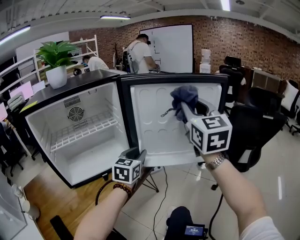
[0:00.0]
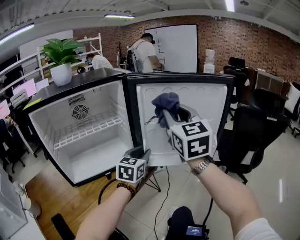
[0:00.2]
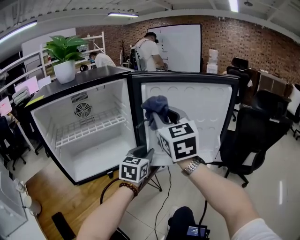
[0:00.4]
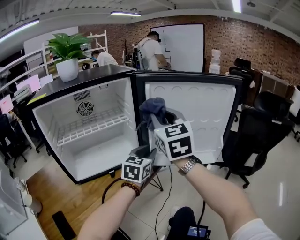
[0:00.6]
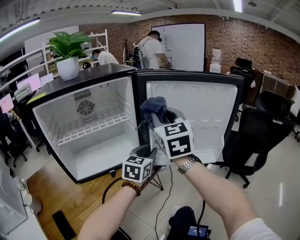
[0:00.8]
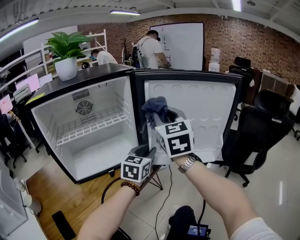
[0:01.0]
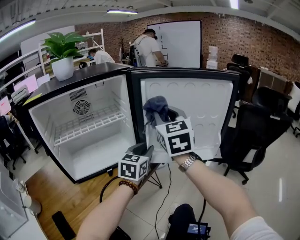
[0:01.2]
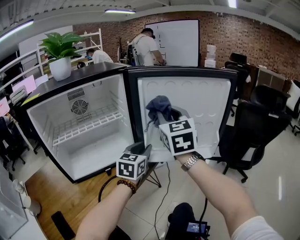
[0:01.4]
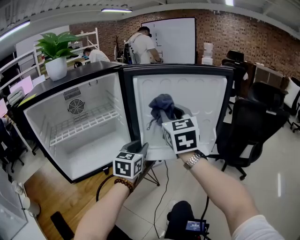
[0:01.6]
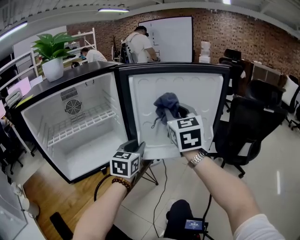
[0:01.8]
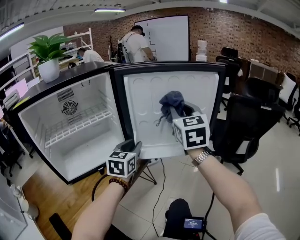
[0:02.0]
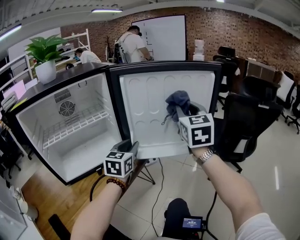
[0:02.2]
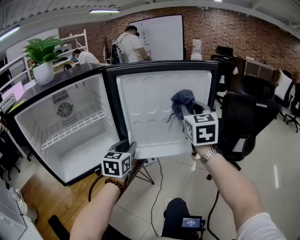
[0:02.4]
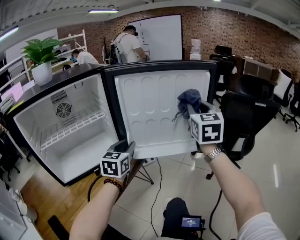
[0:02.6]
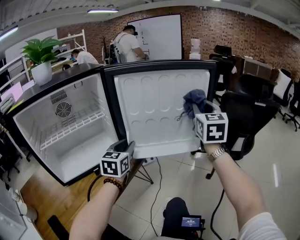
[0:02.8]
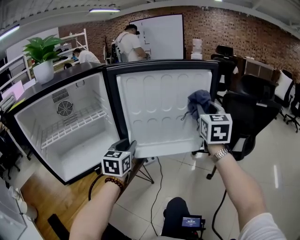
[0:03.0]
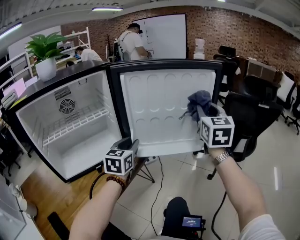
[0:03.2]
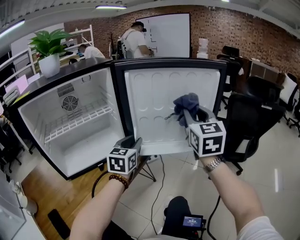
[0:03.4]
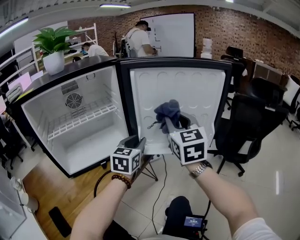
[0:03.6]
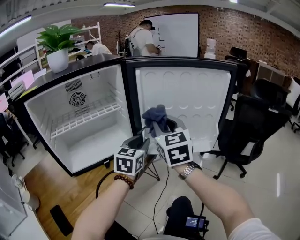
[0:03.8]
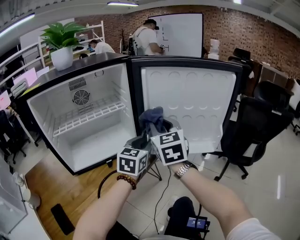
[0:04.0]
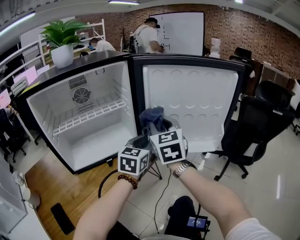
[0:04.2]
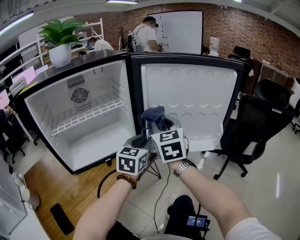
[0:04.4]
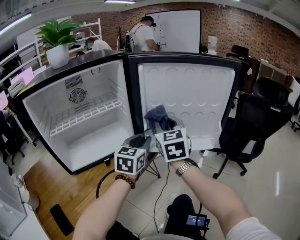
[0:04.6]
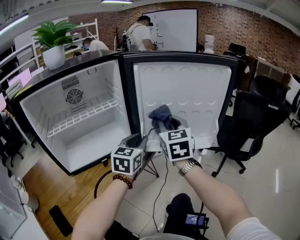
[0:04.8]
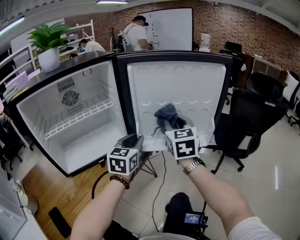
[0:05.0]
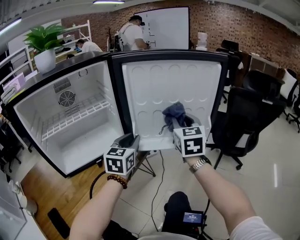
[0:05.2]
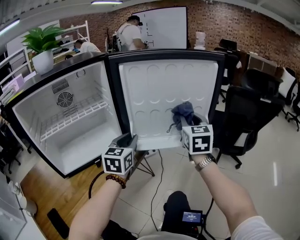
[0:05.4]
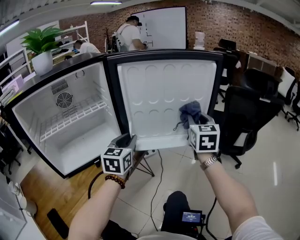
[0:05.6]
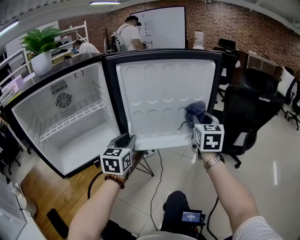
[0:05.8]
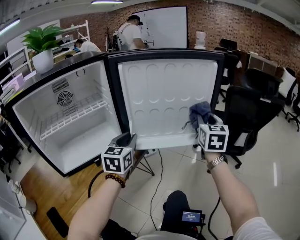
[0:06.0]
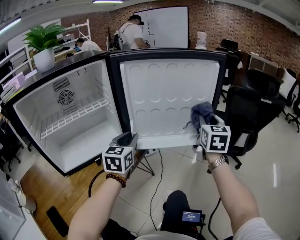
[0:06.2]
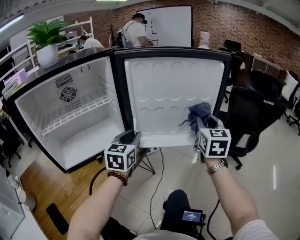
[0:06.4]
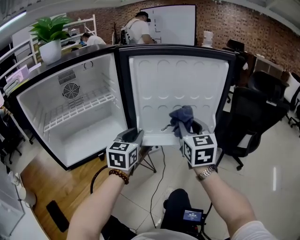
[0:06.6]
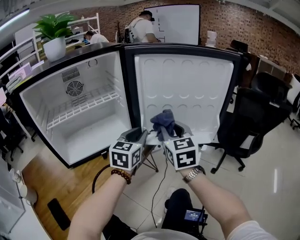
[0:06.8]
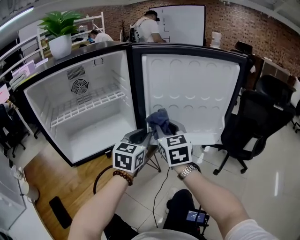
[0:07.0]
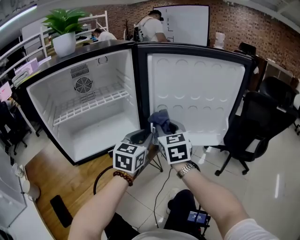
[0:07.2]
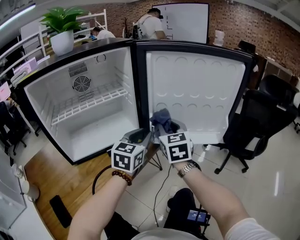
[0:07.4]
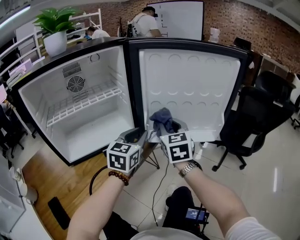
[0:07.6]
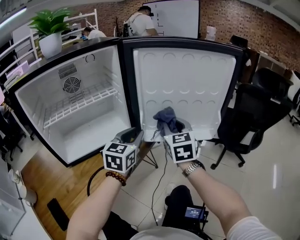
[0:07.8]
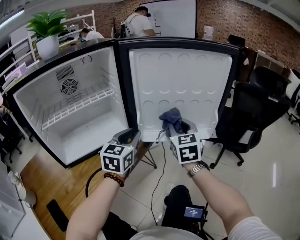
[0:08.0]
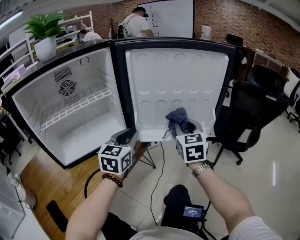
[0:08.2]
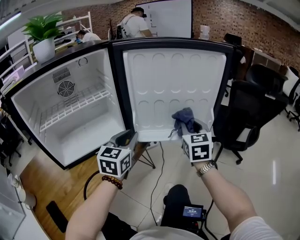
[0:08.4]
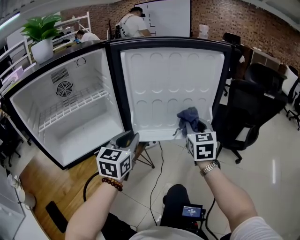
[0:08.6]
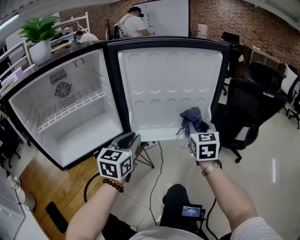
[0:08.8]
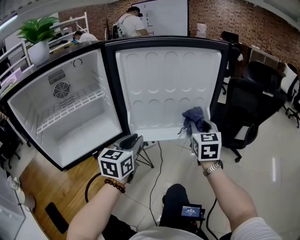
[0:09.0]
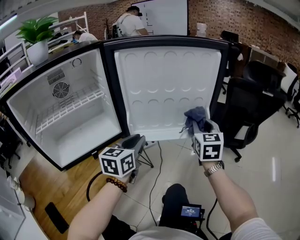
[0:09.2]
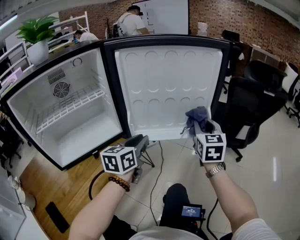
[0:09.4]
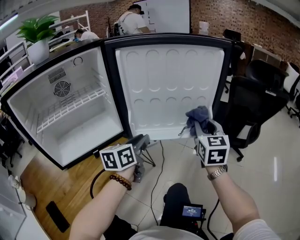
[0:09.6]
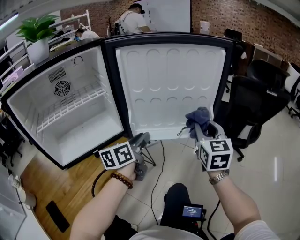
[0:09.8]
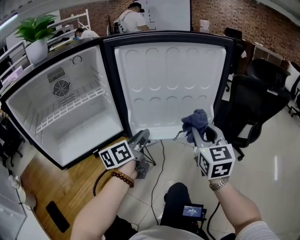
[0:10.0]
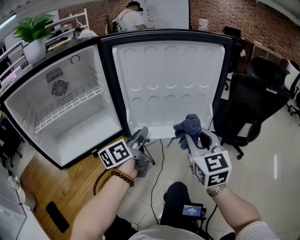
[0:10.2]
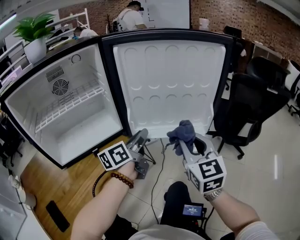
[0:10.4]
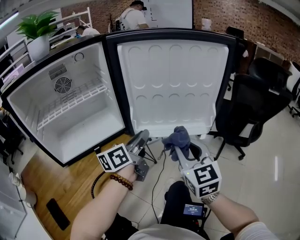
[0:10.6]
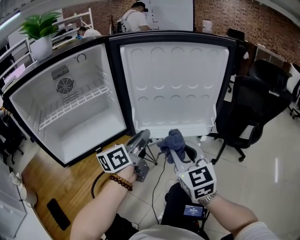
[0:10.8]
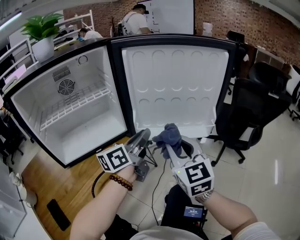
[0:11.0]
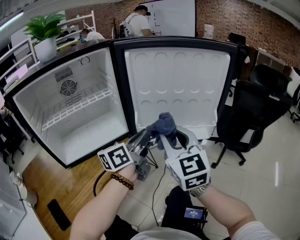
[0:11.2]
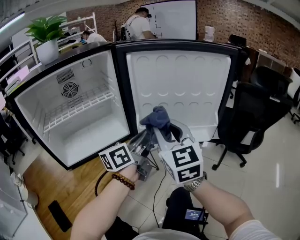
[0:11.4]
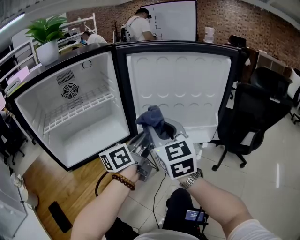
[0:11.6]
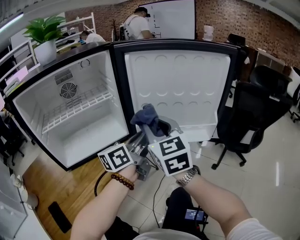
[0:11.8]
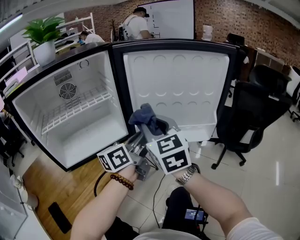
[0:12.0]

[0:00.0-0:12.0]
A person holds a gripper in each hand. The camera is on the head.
0:00.0 to 0:01.6: The right gripper shifts roughly 10 cm to the left and downward.
0:01.6 to 0:03.0: The right gripper heads to the right, covering about 20 cm.
0:03.0 to 0:04.4: The right gripper goes approximately 25 cm to the left, and changes its angle by about 20 degrees.
0:04.4 to 0:06.0: The right gripper heads to the right, covering about 25 cm, and rotates approximately 30 degrees.
0:06.0 to 0:07.6: The right gripper goes some 25 cm to the left, and changes its angle by roughly 20 degrees.
0:07.6 to 0:09.0: The right gripper goes some 20 cm to the right, while the left gripper moves about 5 cm.
0:09.0 to 0:10.4: The right gripper shifts roughly 10 cm backward and to the left; the left gripper turns by about 40 degrees.
0:10.4 to 0:12.0: The right gripper goes approximately 15 cm to the left and upward, while the left gripper shifts roughly 5 cm upward.

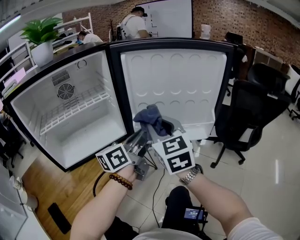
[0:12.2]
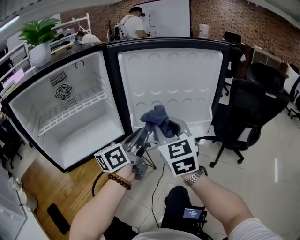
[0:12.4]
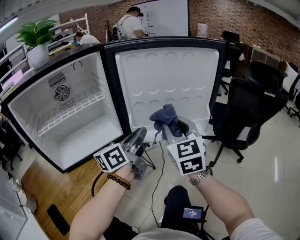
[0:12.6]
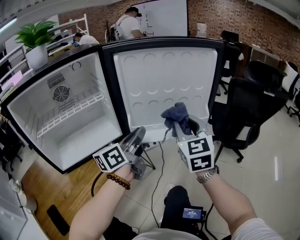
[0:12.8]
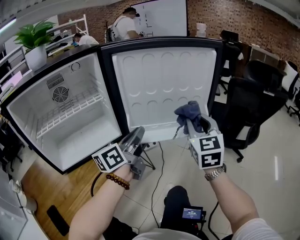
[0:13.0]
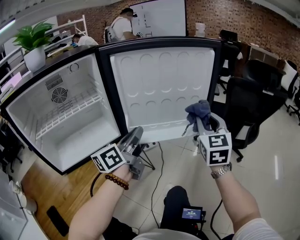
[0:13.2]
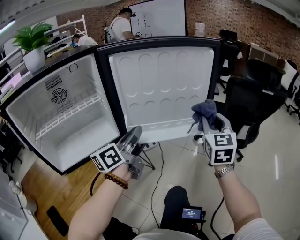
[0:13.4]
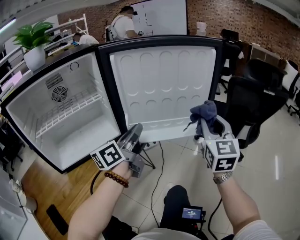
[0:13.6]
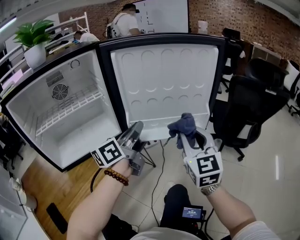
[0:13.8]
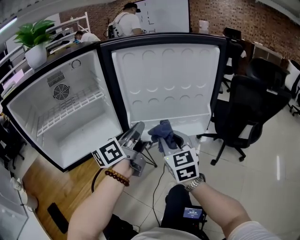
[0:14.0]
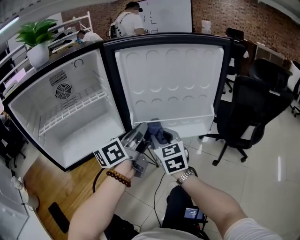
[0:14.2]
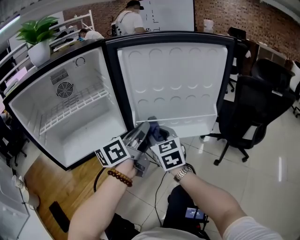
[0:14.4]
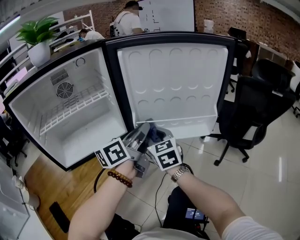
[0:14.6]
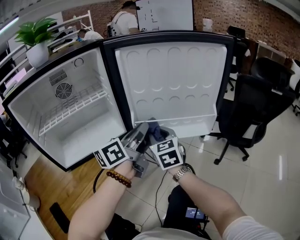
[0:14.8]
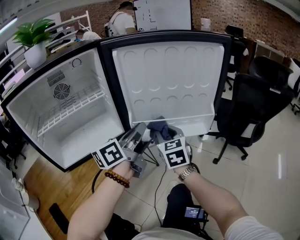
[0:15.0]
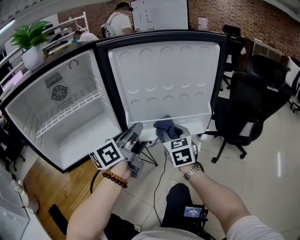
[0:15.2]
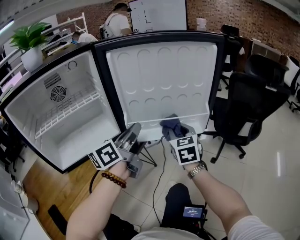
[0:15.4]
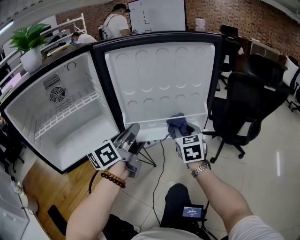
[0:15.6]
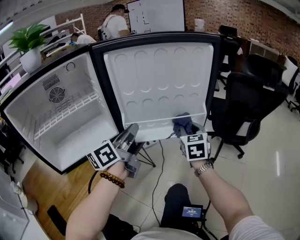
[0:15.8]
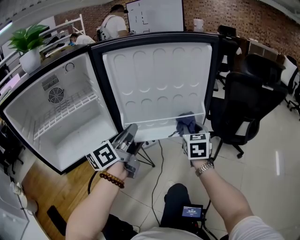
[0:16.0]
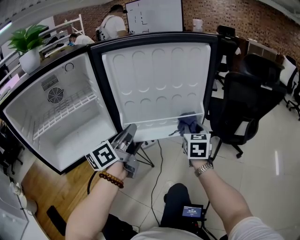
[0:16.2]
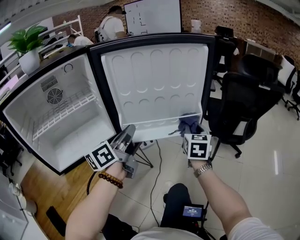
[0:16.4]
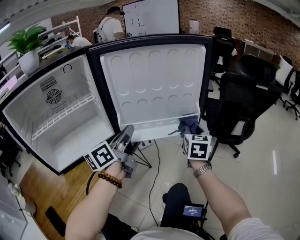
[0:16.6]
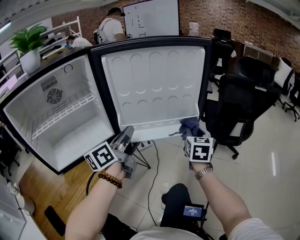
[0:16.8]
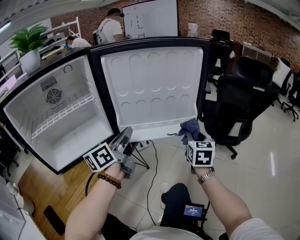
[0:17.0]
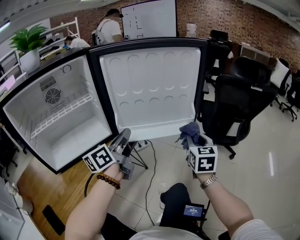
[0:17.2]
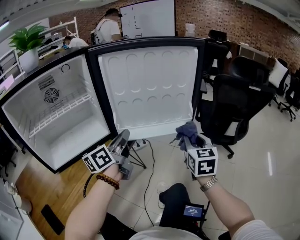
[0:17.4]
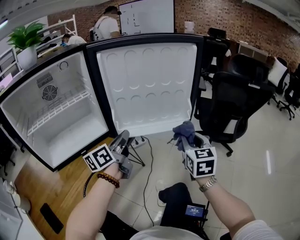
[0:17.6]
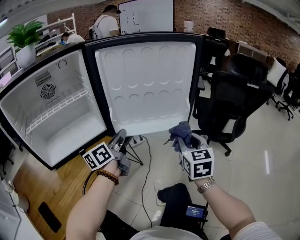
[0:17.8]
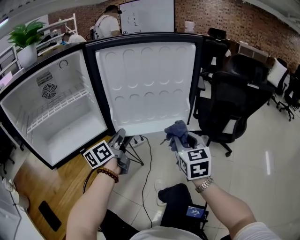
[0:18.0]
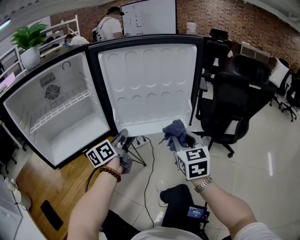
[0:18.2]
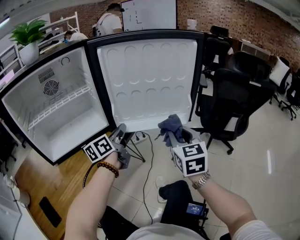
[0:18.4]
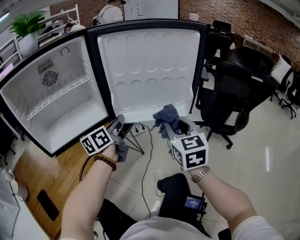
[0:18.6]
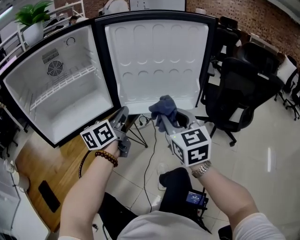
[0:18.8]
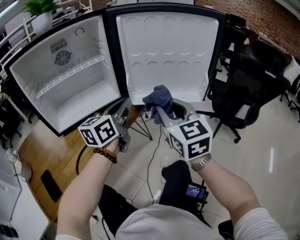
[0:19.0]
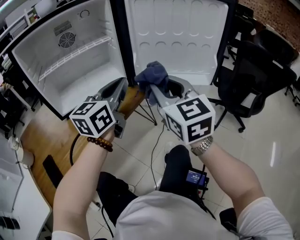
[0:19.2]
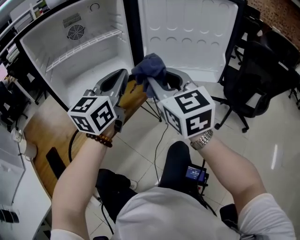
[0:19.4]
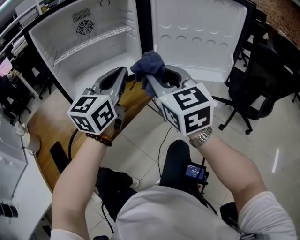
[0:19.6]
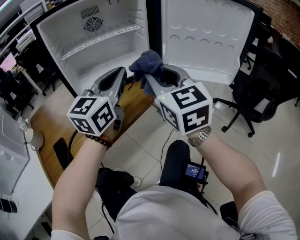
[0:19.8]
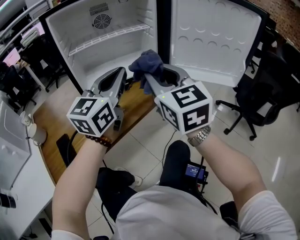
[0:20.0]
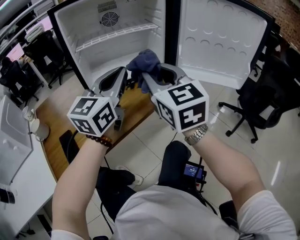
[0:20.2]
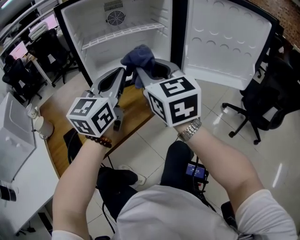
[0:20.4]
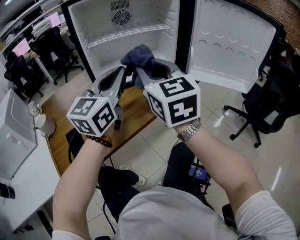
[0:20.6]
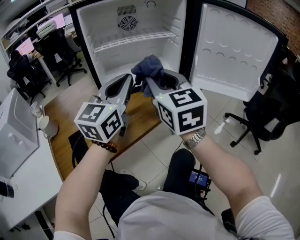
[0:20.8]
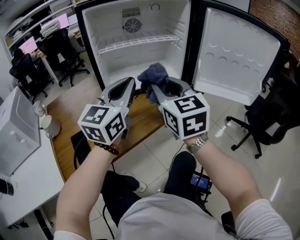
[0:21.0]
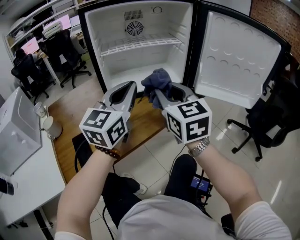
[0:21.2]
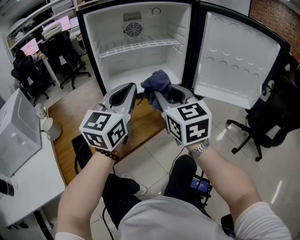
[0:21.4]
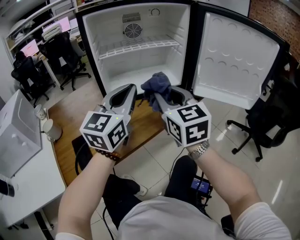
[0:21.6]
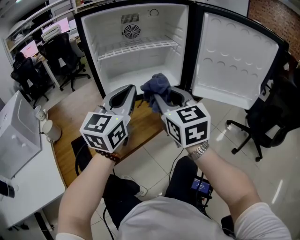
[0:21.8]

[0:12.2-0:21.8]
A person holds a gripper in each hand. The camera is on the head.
0:12.2 to 0:13.8: The right gripper moves to the right, about 15 cm.
0:13.8 to 0:15.4: The right gripper heads downward and forward, covering approximately 10 cm, and goes to the left and returns, roughly 15 cm each way.
0:15.4 to 0:17.0: The right gripper heads to the right, covering roughly 15 cm.
0:17.0 to 0:18.6: The right gripper moves backward, to the left and upward, roughly 15 cm, and rotates approximately 20 degrees; the left gripper heads downward, covering approximately 5 cm.
0:18.6 to 0:20.2: The right gripper heads to the left, covering some 30 cm, and swivels about 30 degrees. The left gripper shifts roughly 25 cm to the left, backward and upward, and rotates around the line of its fingers by roughly 40 degrees, clockwise from behind.
0:20.2 to 0:21.8: The grippers move only a little.

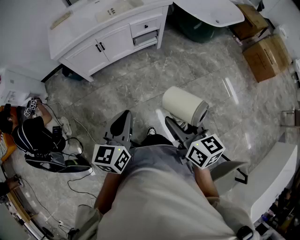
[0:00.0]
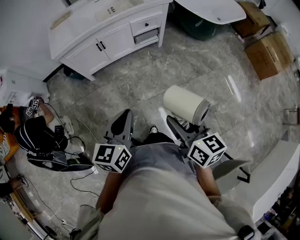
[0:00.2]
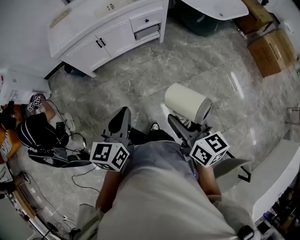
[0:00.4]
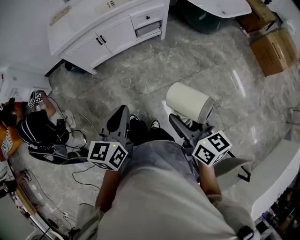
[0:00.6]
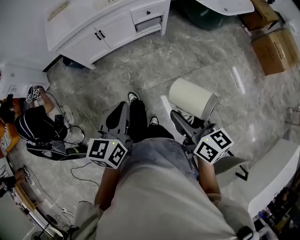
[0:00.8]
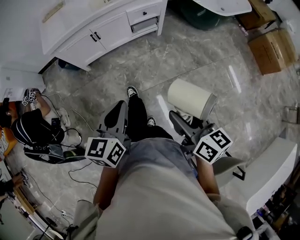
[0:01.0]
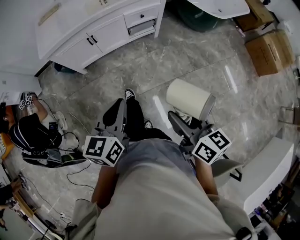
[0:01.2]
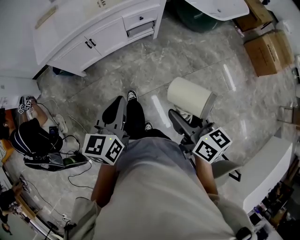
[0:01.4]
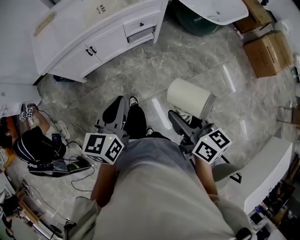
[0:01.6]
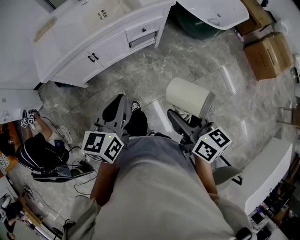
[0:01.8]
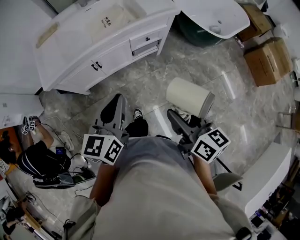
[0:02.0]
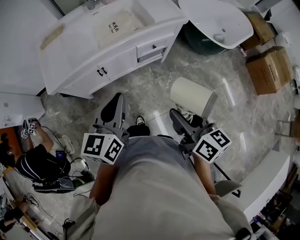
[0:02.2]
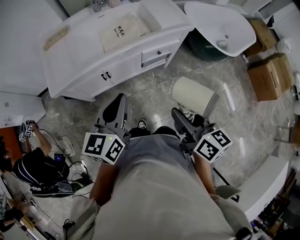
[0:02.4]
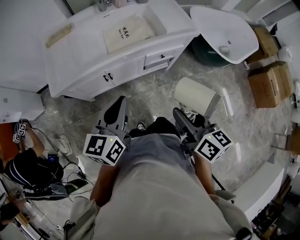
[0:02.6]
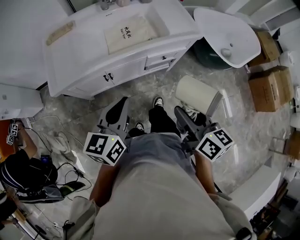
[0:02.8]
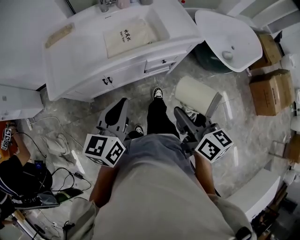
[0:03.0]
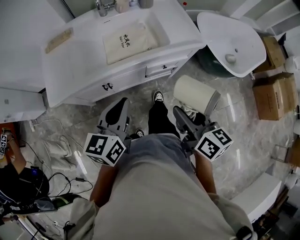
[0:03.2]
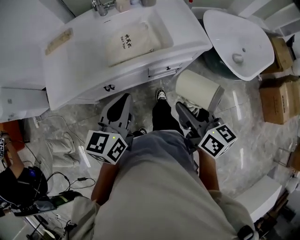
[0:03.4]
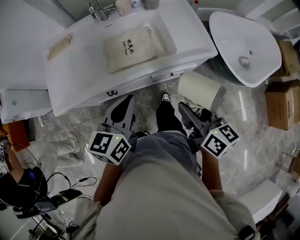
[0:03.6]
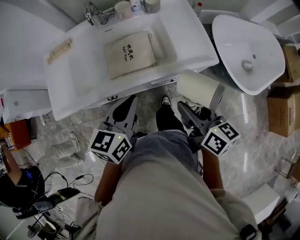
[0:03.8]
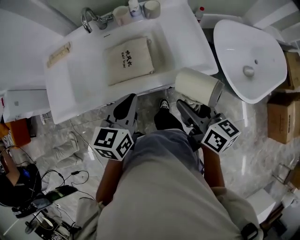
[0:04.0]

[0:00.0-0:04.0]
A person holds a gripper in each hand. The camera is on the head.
0:00.0 to 0:01.4: The left gripper ends up about 15 cm from where it was.
0:01.4 to 0:02.6: The left gripper moves about 30 cm.
0:02.6 to 0:04.0: The left gripper shifts by approximately 30 cm.
